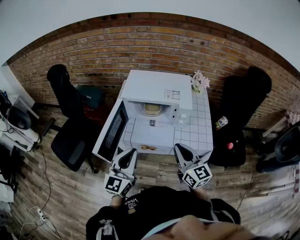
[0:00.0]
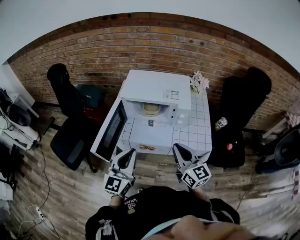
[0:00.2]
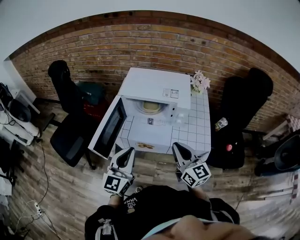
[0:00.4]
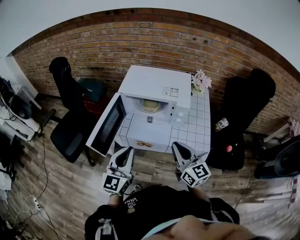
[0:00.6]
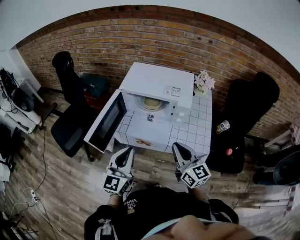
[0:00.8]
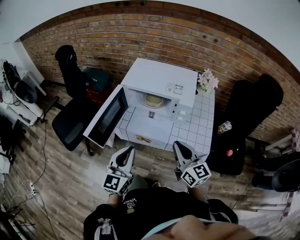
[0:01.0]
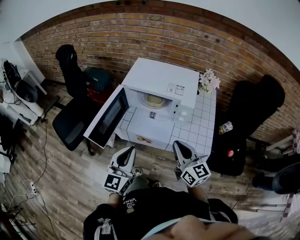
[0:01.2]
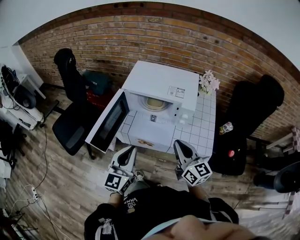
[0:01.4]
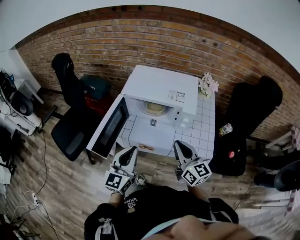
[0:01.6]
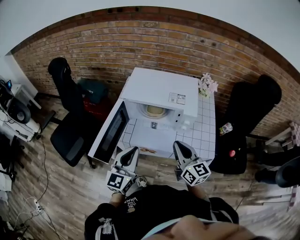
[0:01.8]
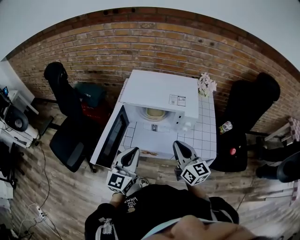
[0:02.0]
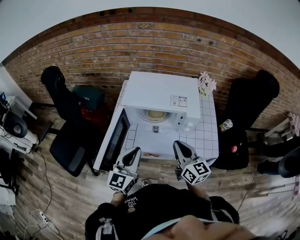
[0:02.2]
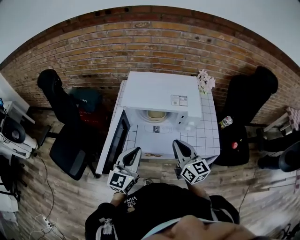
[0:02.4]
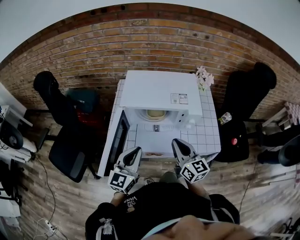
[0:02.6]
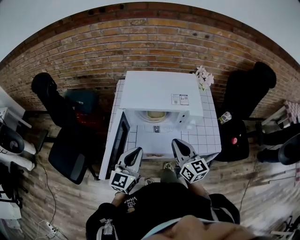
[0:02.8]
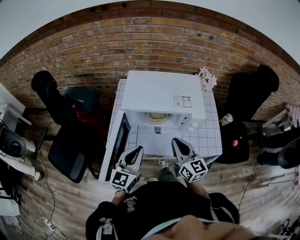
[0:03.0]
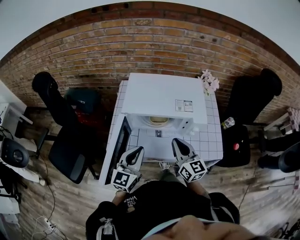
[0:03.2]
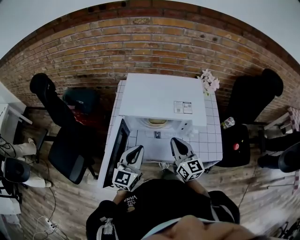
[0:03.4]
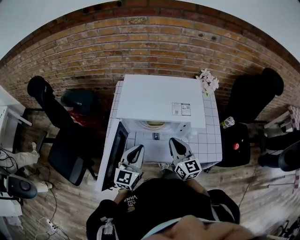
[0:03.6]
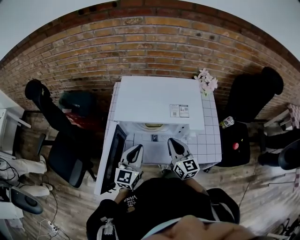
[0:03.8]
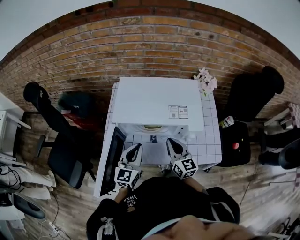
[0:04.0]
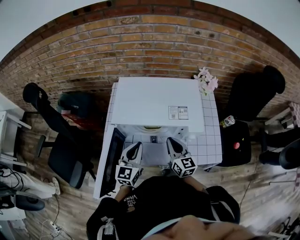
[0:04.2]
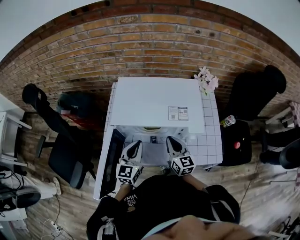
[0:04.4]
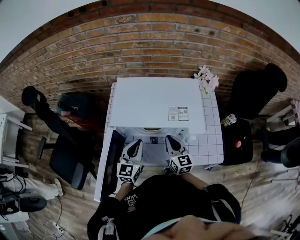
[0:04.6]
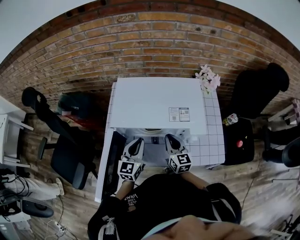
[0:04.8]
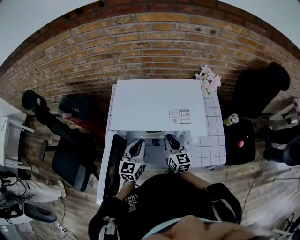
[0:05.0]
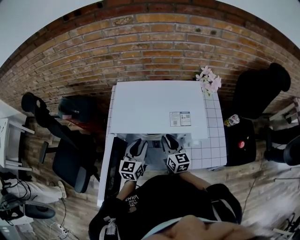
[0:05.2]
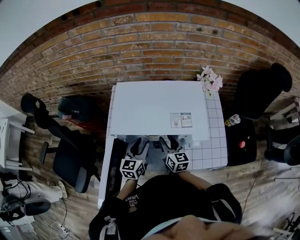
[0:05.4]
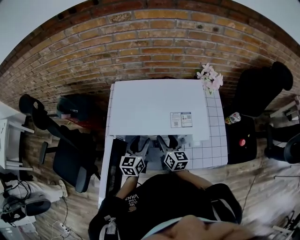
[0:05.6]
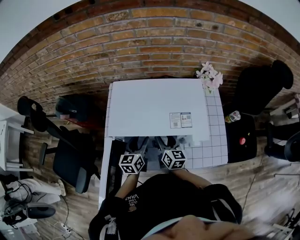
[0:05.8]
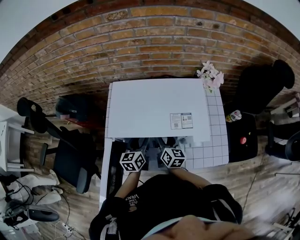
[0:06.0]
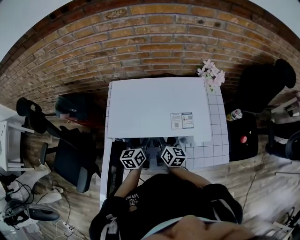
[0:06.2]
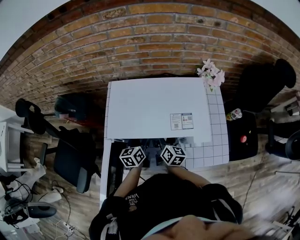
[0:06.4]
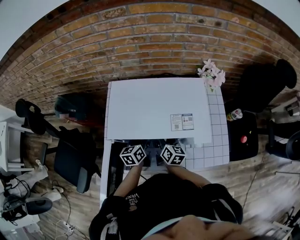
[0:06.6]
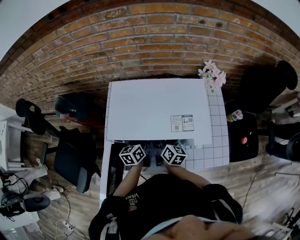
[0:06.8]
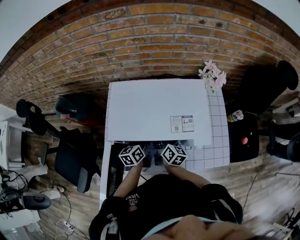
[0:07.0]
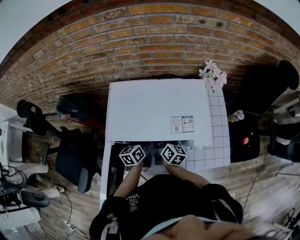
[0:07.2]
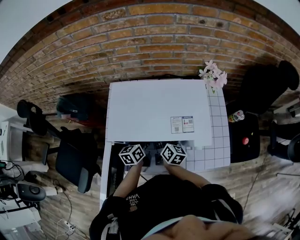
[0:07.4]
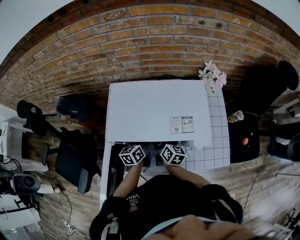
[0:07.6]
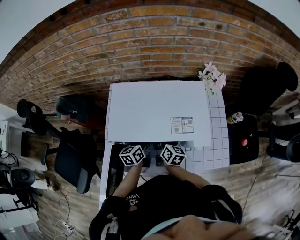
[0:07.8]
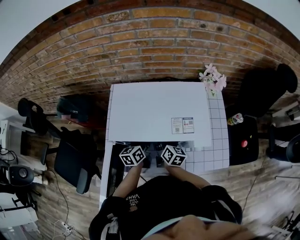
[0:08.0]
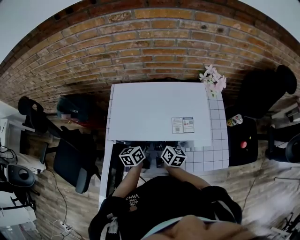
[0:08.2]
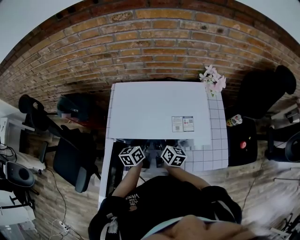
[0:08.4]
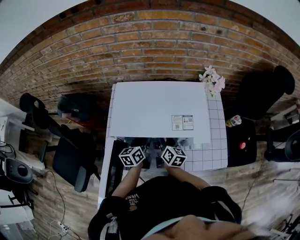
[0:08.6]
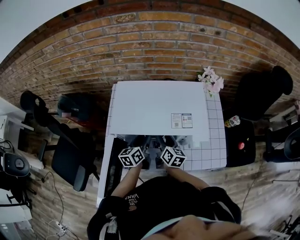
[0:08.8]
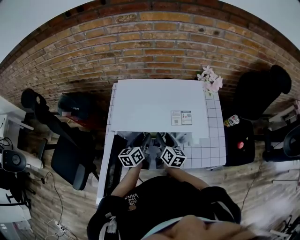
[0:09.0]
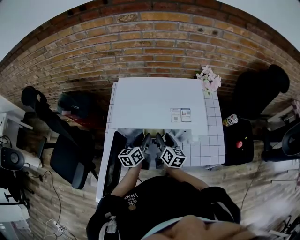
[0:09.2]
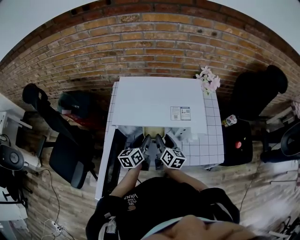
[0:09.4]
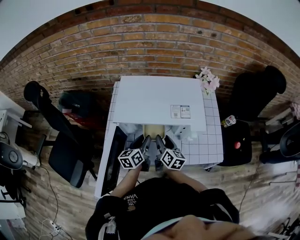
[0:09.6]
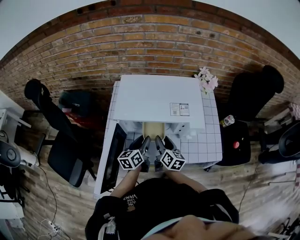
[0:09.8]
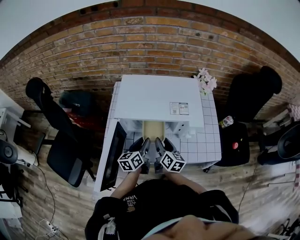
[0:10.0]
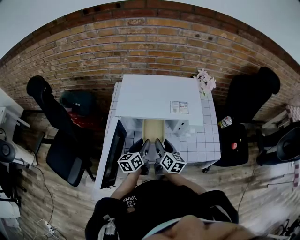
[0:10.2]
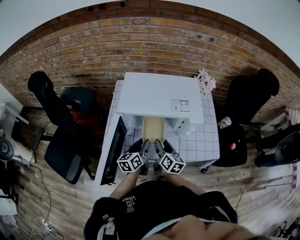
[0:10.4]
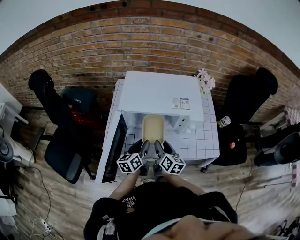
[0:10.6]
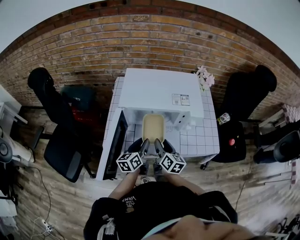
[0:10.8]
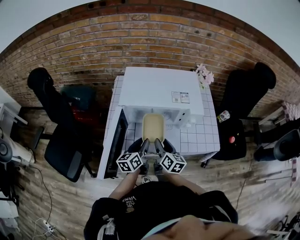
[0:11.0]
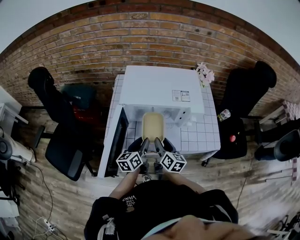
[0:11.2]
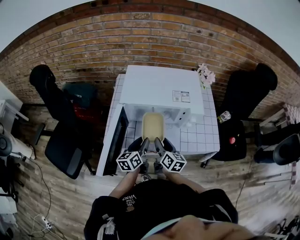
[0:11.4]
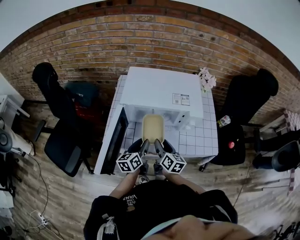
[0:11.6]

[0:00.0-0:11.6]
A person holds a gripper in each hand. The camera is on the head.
0:00.0 to 0:01.4: The right gripper ends up roughly 5 cm from where it was.
0:01.4 to 0:02.8: The right gripper is displaced to the left and forward by about 10 cm. The left gripper is displaced forward and to the left by roughly 15 cm.
0:02.8 to 0:04.4: The grippers both shift forward and downward by roughly 15 cm.
0:04.4 to 0:05.8: The two grippers go some 10 cm forward and downward. The right gripper opens. Meanwhile the left gripper rotates about 20 degrees, and opens up.
0:05.8 to 0:07.2: The left gripper shifts by some 5 cm.
0:07.2 to 0:08.8: The grippers move only a little.
0:08.8 to 0:10.2: The two grippers go roughly 10 cm backward.
0:10.2 to 0:11.6: Both grippers move backward, roughly 5 cm.

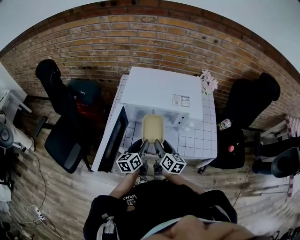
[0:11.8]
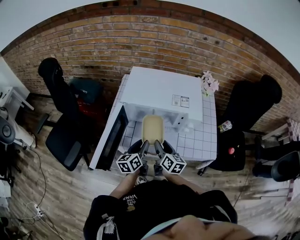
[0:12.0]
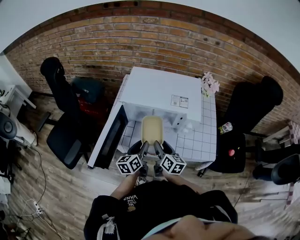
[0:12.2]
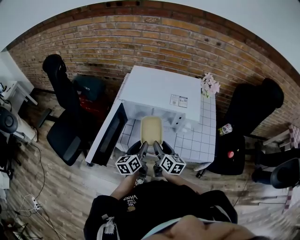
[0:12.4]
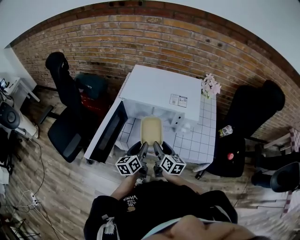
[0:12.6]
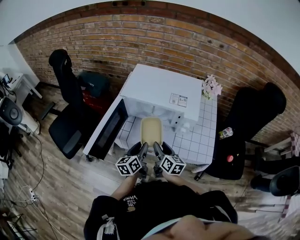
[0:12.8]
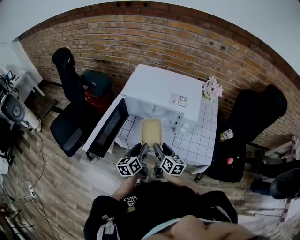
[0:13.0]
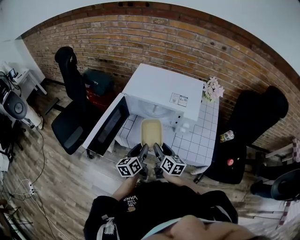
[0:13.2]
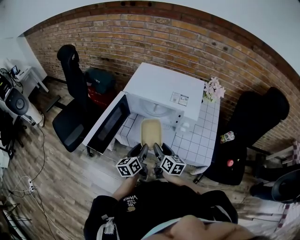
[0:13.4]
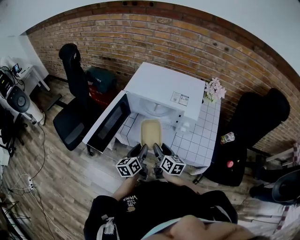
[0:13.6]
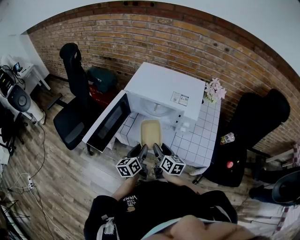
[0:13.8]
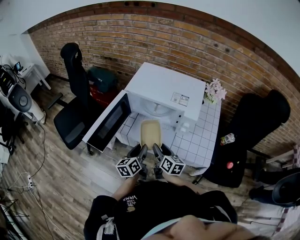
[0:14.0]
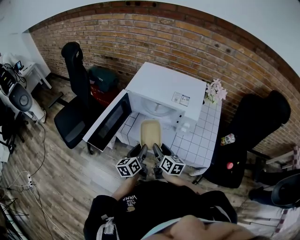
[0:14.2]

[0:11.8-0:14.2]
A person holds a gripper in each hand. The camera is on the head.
0:11.8 to 0:13.0: The left gripper moves backward, roughly 5 cm. Meanwhile the right gripper changes place by roughly 5 cm.
0:13.0 to 0:14.2: The grippers make only small movements.

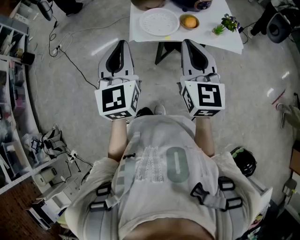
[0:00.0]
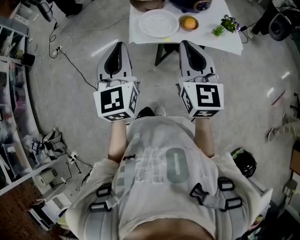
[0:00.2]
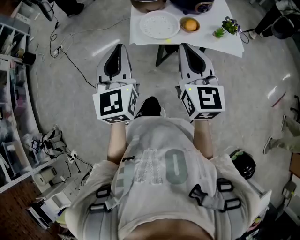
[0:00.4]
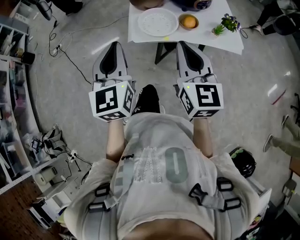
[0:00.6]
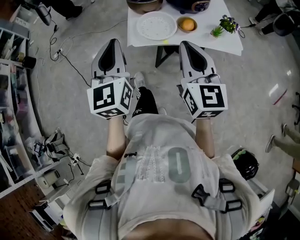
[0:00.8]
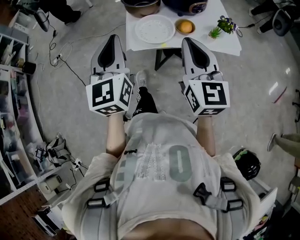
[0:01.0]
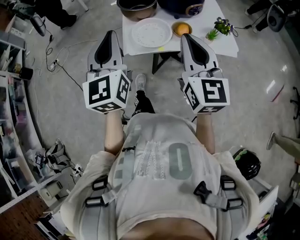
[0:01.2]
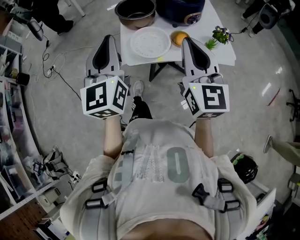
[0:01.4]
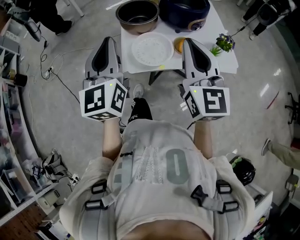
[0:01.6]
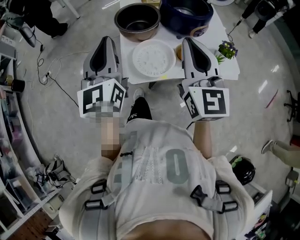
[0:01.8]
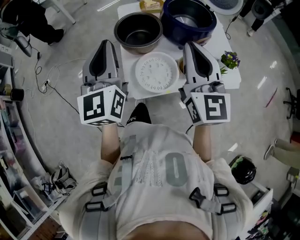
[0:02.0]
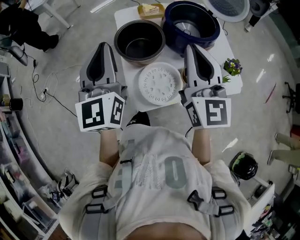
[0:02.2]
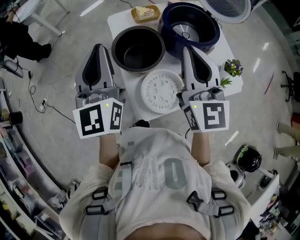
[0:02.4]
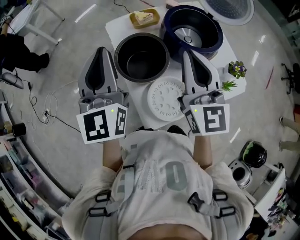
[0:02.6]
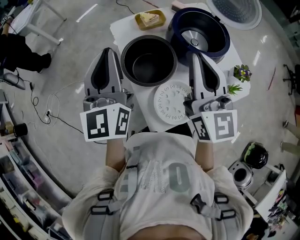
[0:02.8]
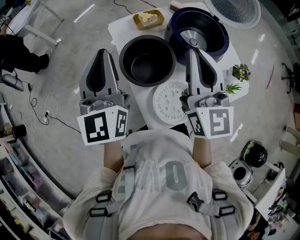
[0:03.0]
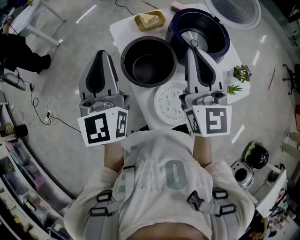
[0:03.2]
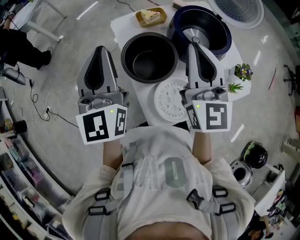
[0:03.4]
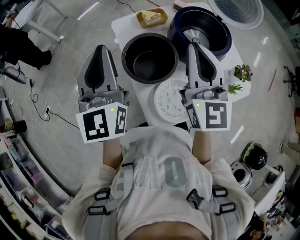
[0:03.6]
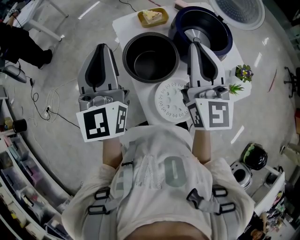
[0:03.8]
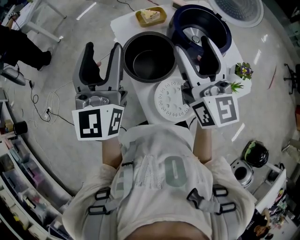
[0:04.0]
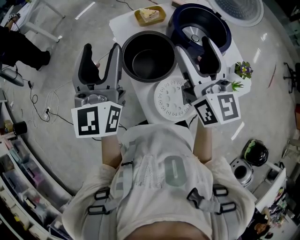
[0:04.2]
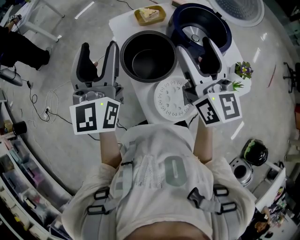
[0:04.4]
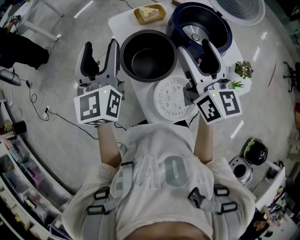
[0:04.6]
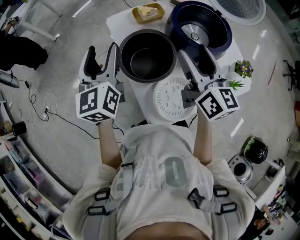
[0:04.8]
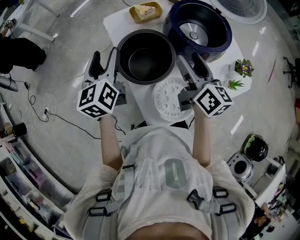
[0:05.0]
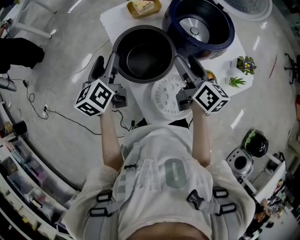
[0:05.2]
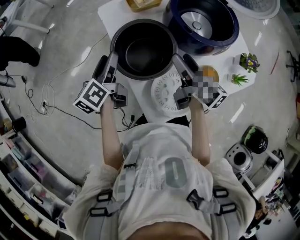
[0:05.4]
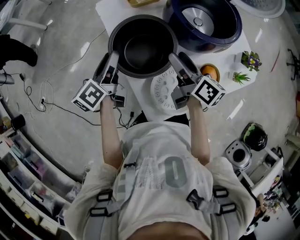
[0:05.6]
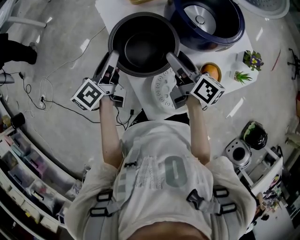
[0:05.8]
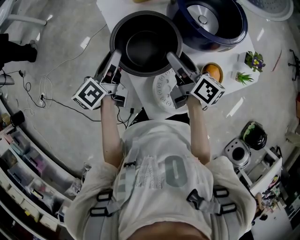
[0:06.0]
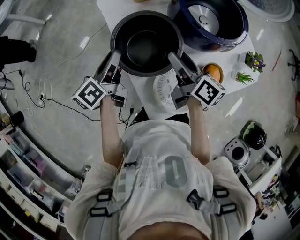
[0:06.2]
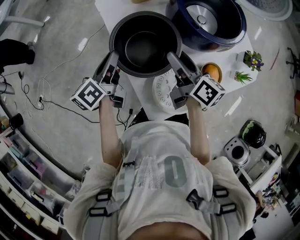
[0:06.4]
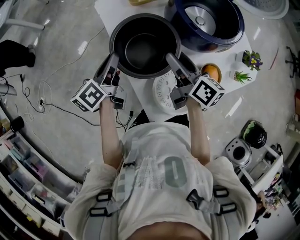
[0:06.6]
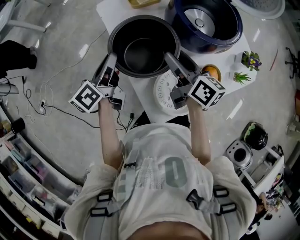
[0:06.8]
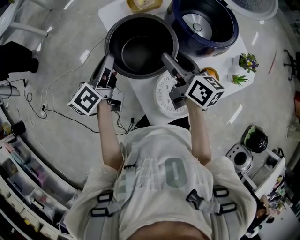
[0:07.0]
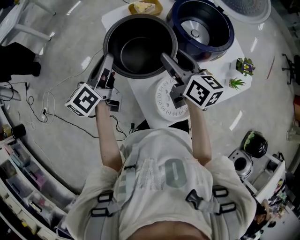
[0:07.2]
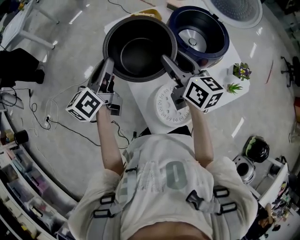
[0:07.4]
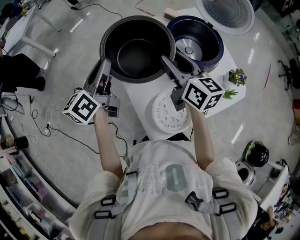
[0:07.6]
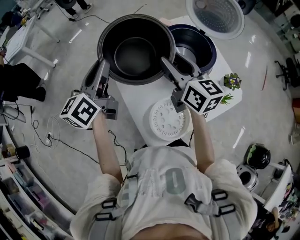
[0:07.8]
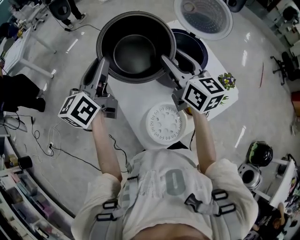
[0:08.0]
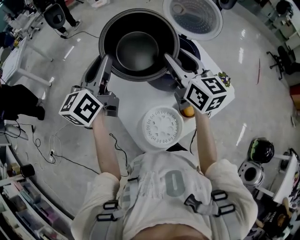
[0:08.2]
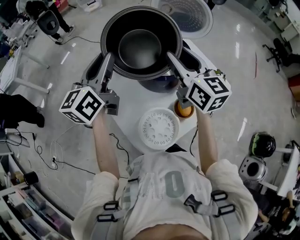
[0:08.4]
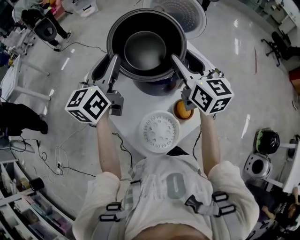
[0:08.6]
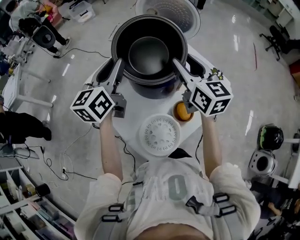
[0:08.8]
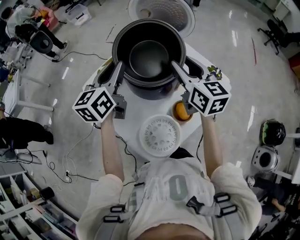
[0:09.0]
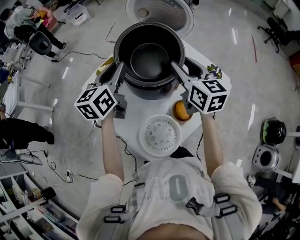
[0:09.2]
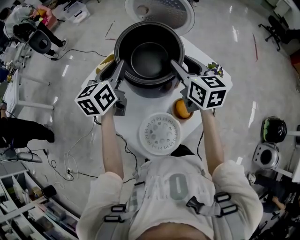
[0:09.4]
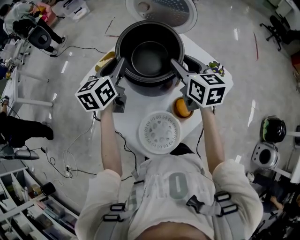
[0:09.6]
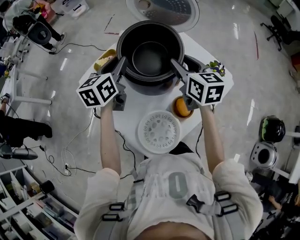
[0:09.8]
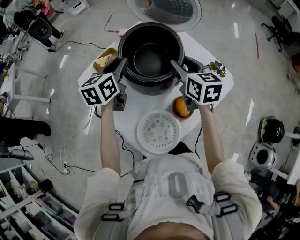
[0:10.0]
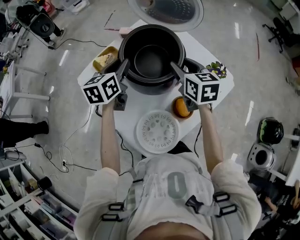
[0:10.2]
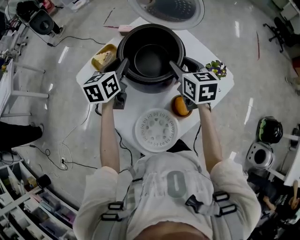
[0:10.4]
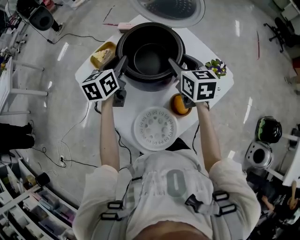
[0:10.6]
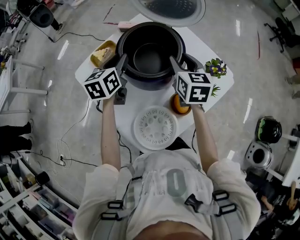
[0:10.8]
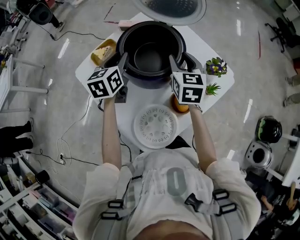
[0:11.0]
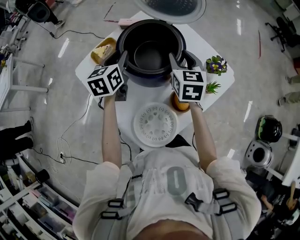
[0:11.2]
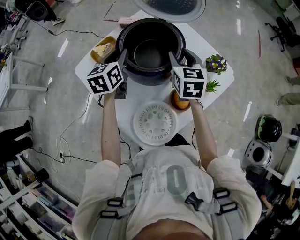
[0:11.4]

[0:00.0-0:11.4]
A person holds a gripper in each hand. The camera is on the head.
0:00.0 to 0:01.4: The right gripper goes about 10 cm forward. Meanwhile the left gripper is displaced forward and upward by some 10 cm.
0:01.4 to 0:02.8: The grippers both shift forward by about 35 cm.
0:02.8 to 0:04.2: The left gripper opens. The right gripper opens up.
0:04.2 to 0:05.6: Both grippers move downward, approximately 25 cm. The left gripper twists about 50 degrees counterclockwise, seen from behind. The right gripper rotates around the line of its fingers by roughly 50 degrees, clockwise from behind.
0:05.6 to 0:07.2: Both grippers move upward, some 5 cm. The left gripper closes up. The right gripper rotates roughly 20 degrees.
0:07.2 to 0:08.6: Both grippers travel together to the right and upward, approximately 25 cm. The left gripper turns by roughly 30 degrees; the right gripper turns by roughly 30 degrees.
0:08.6 to 0:10.0: The right gripper moves downward, approximately 10 cm, and rotates roughly 20 degrees, while the left gripper travels downward and forward by approximately 15 cm, and changes its angle by about 20 degrees.
0:10.0 to 0:11.4: The grippers stay close to where they were, moving slightly.
